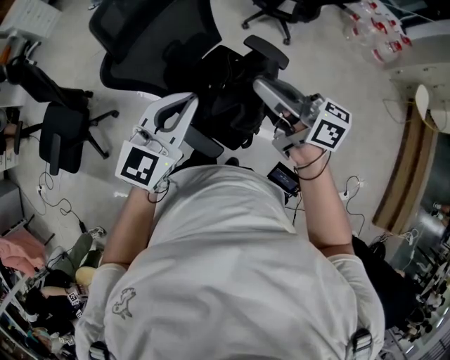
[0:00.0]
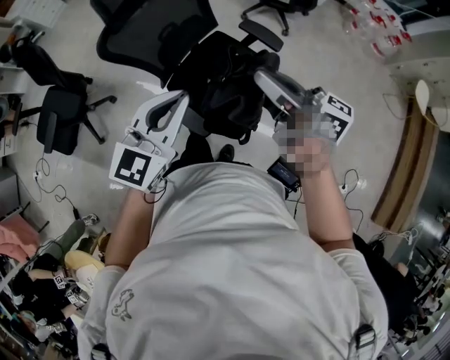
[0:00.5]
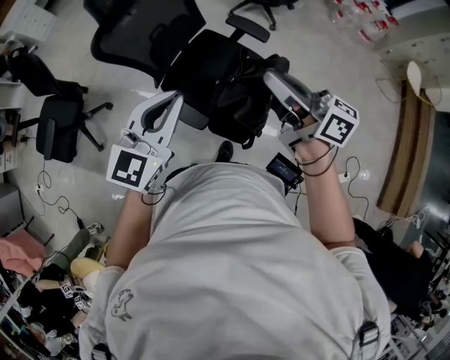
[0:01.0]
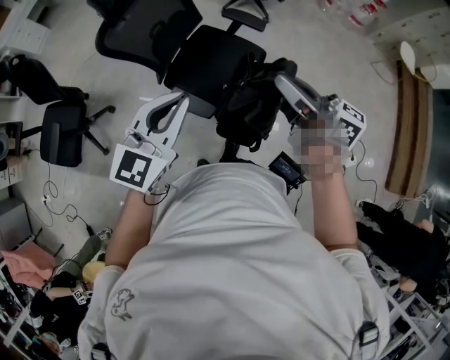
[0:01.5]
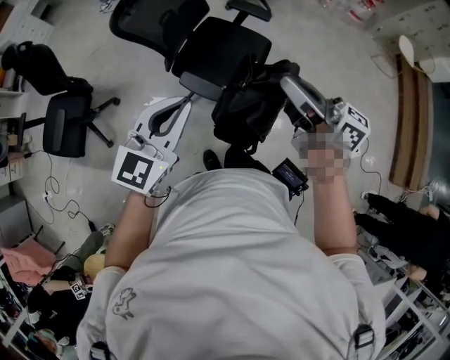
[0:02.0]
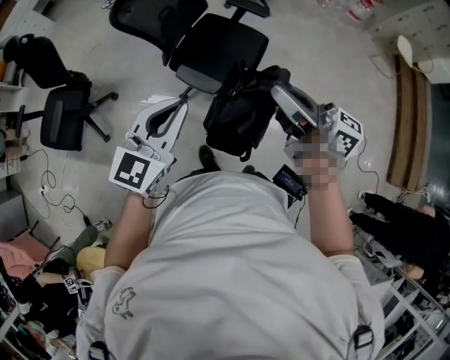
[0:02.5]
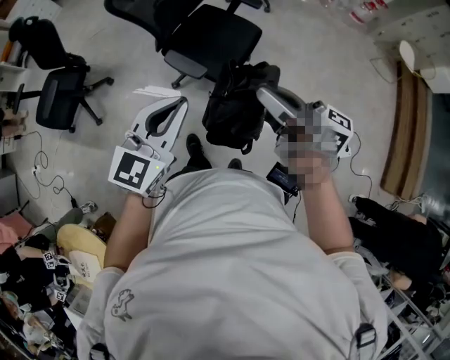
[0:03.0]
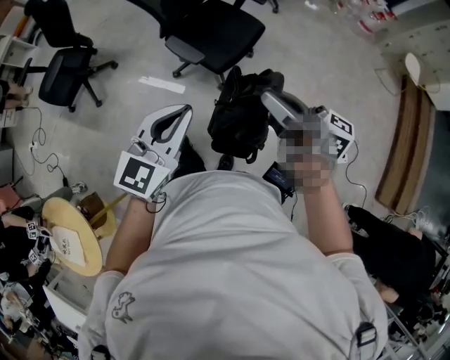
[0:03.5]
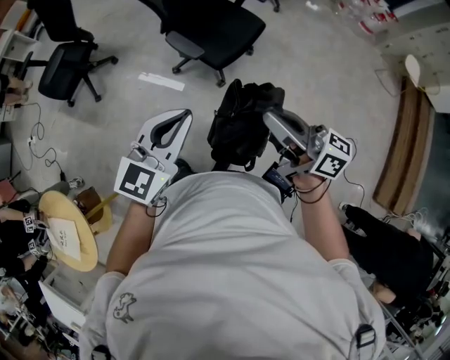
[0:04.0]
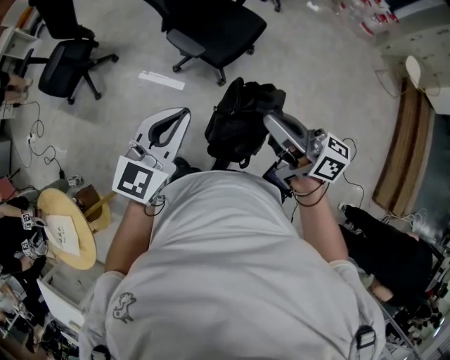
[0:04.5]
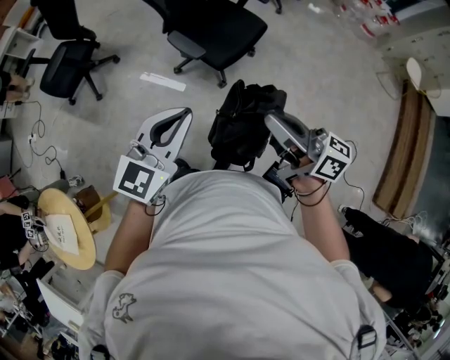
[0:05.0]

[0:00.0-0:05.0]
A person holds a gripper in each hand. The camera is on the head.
0:00.0 to 0:02.5: The grippers both shift backward by about 35 cm.
0:02.5 to 0:05.0: The left gripper shifts roughly 25 cm backward and to the right, while the right gripper travels backward by some 20 cm.

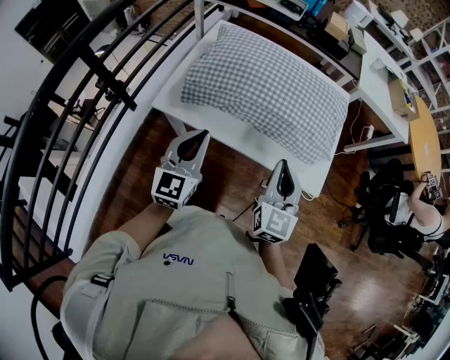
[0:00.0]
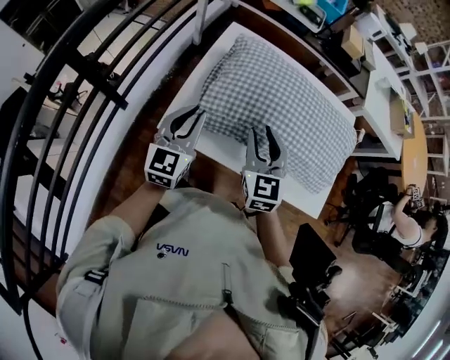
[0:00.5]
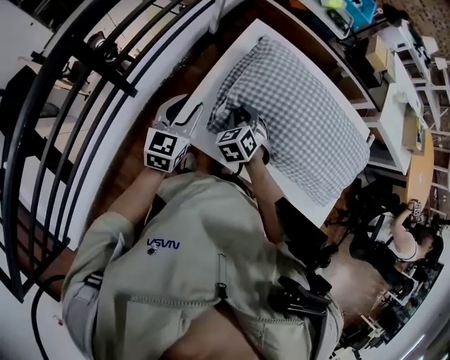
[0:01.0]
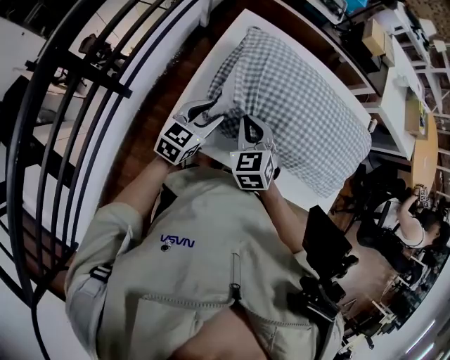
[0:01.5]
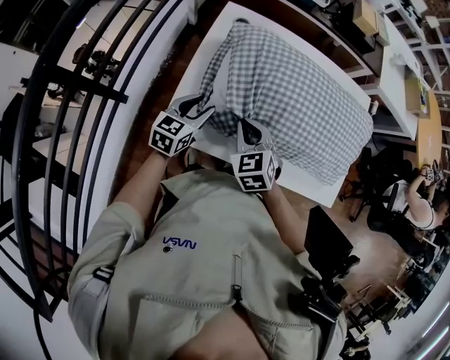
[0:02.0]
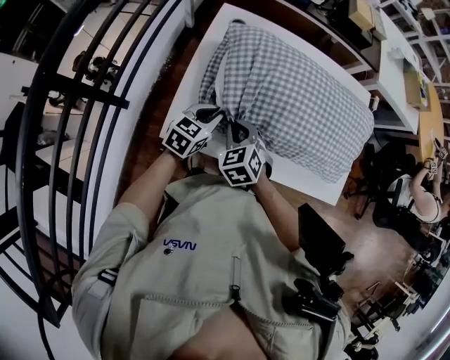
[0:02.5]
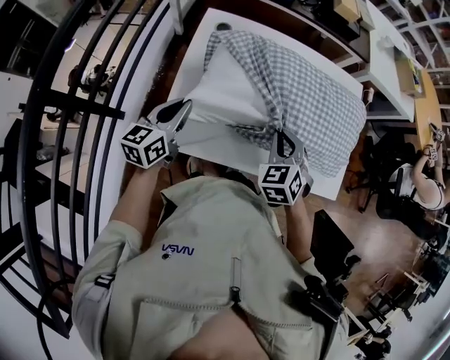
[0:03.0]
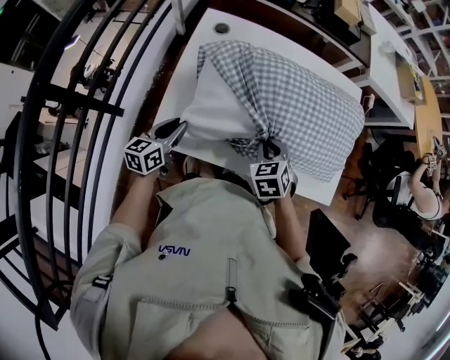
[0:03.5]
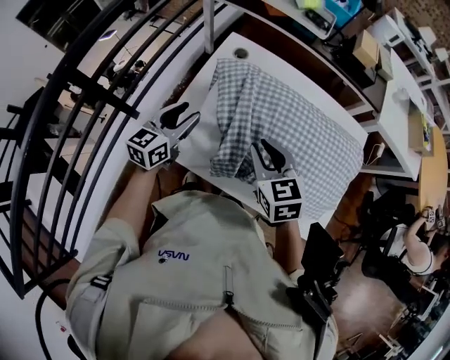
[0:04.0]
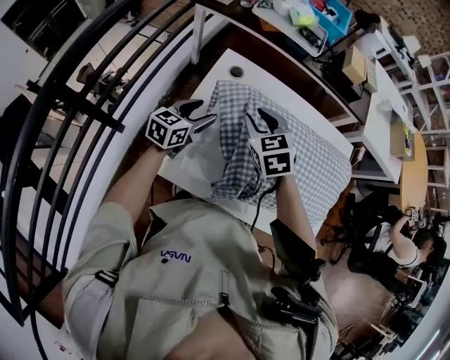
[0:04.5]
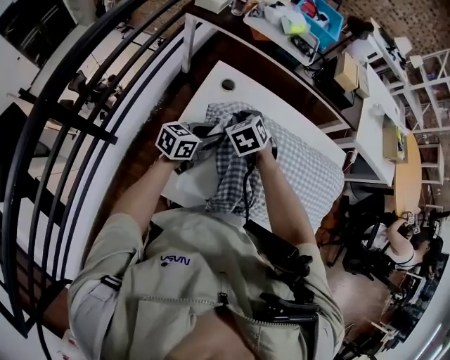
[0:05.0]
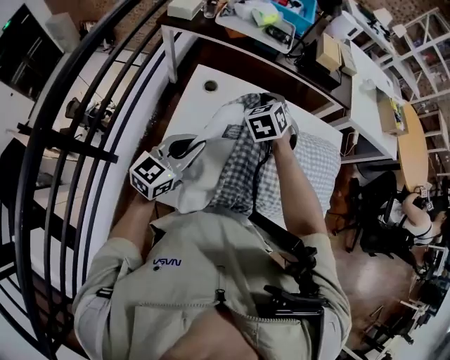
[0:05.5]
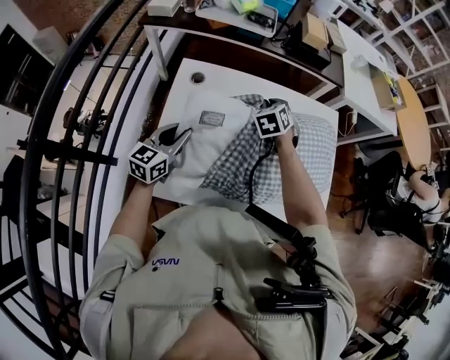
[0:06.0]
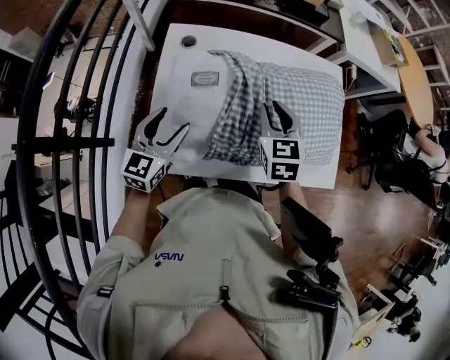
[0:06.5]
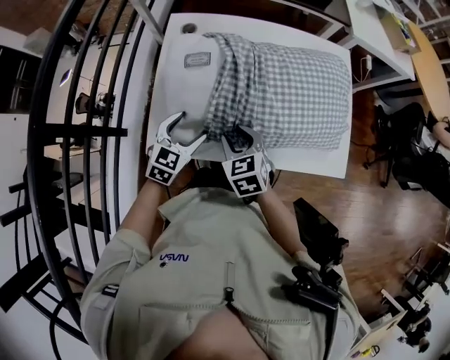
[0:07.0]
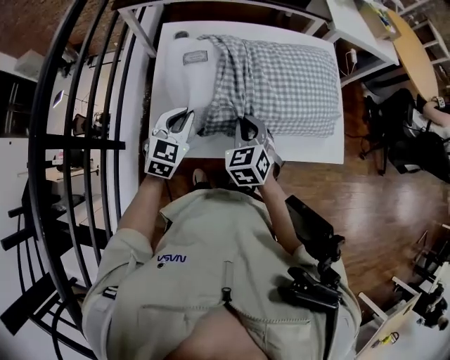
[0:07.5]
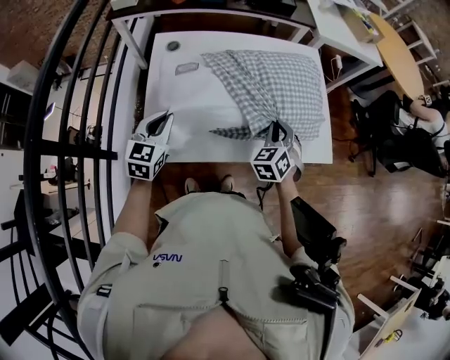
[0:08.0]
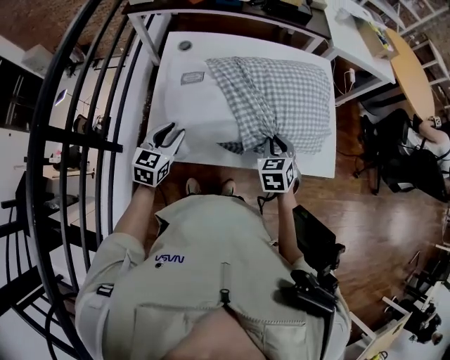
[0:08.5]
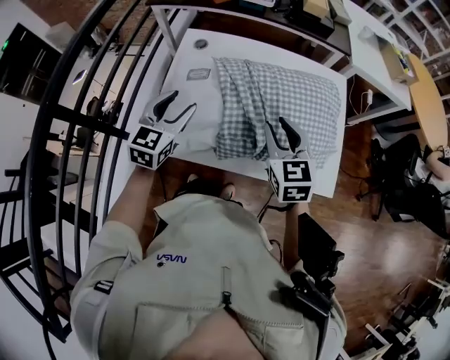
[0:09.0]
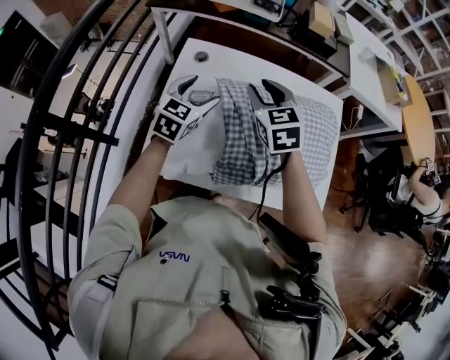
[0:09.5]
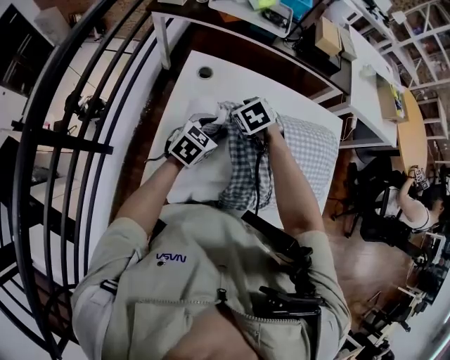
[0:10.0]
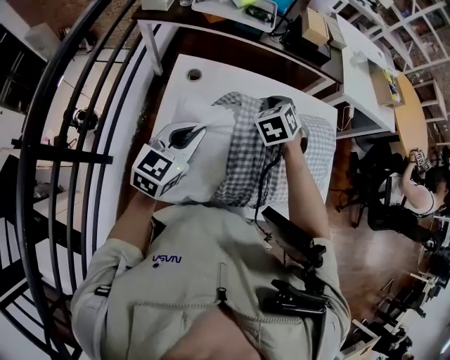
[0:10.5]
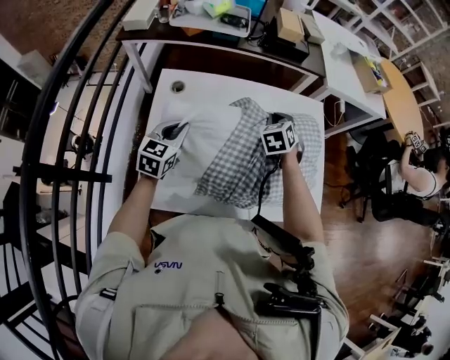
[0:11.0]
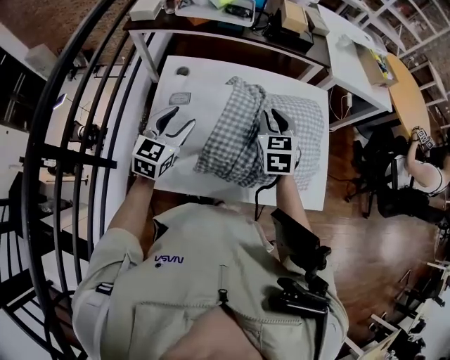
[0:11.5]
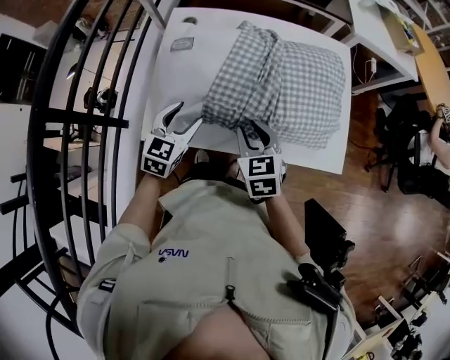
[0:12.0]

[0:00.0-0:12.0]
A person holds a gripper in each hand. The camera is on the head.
0:00.0 to 0:02.0: The right gripper moves to the left, forward and downward, some 35 cm, tilts its fingers approximately 30 degrees downward, and opens, then closes again. Meanwhile the left gripper is displaced forward, to the left and downward by roughly 30 cm, swivels roughly 30 degrees, and opens up.
0:02.0 to 0:04.0: The left gripper moves up and down over about 10 cm, changing direction 2 times, and closes and opens again; the right gripper swings up and down, some 15 cm each way, with 3 reversals, and opens.
0:04.0 to 0:06.0: The right gripper goes up and down, approximately 10 cm each way, reversing 2 times, and turns by roughly 40 degrees, while the left gripper goes up and down, approximately 10 cm each way, reversing 2 times.
0:06.0 to 0:08.0: The left gripper is displaced backward by roughly 10 cm, and opens and closes again. Meanwhile the right gripper heads backward and to the right, covering about 30 cm, and opens, then closes again.
0:08.0 to 0:10.0: The left gripper shifts some 15 cm forward and to the right, and opens up. Meanwhile the right gripper is displaced to the left and forward by roughly 30 cm, rotates roughly 40 degrees, and opens.
0:10.0 to 0:12.0: The left gripper moves forward and backward over roughly 15 cm, changing direction 2 times, and closes, then reopens, while the right gripper shifts roughly 30 cm backward and to the right, swivels about 30 degrees, and closes, then opens again.

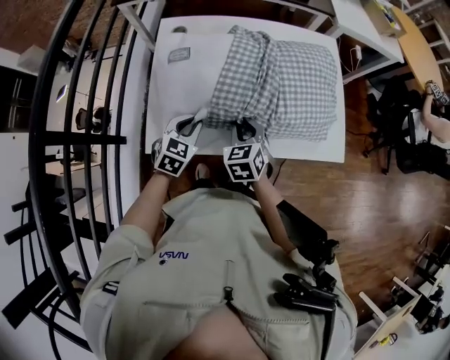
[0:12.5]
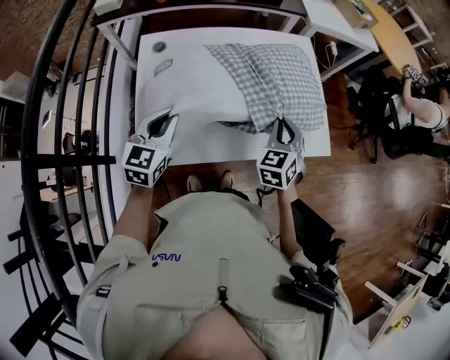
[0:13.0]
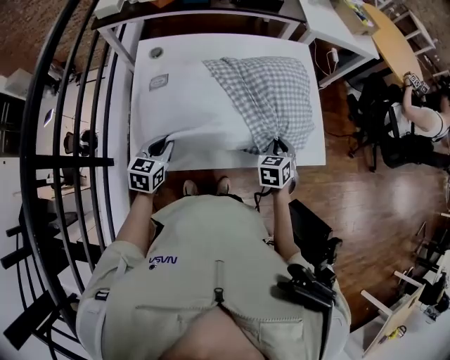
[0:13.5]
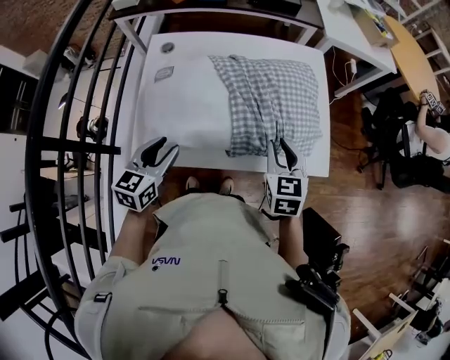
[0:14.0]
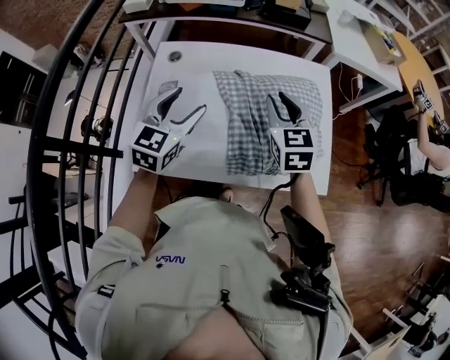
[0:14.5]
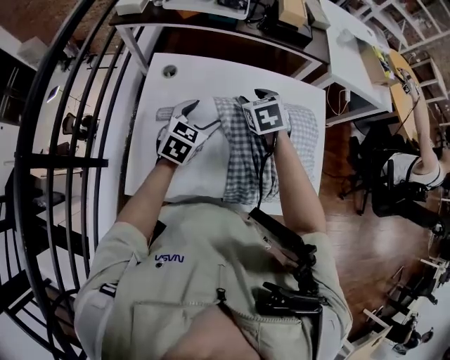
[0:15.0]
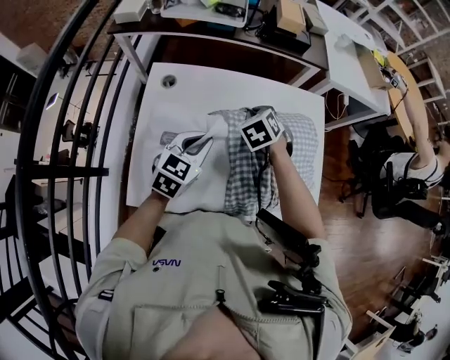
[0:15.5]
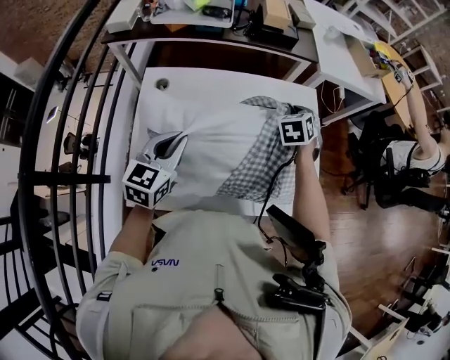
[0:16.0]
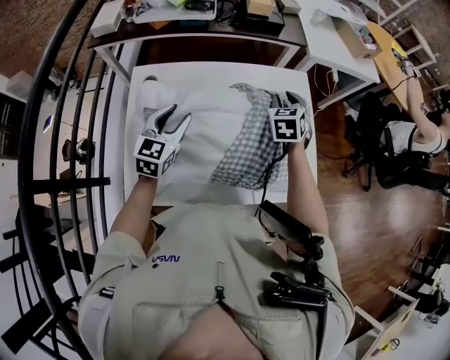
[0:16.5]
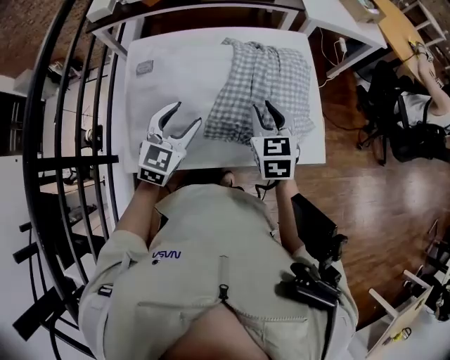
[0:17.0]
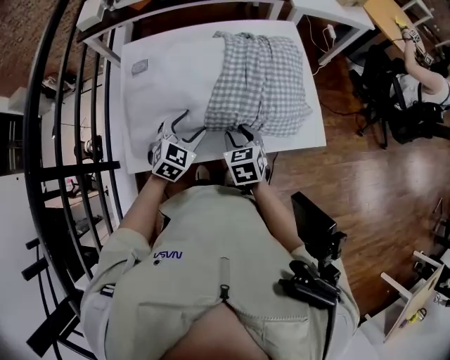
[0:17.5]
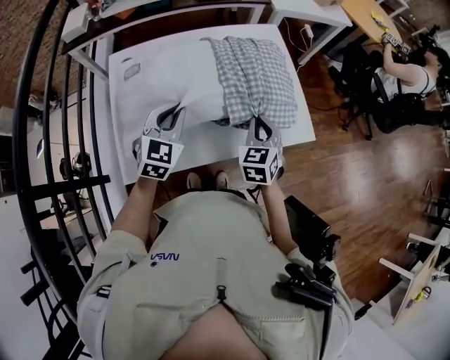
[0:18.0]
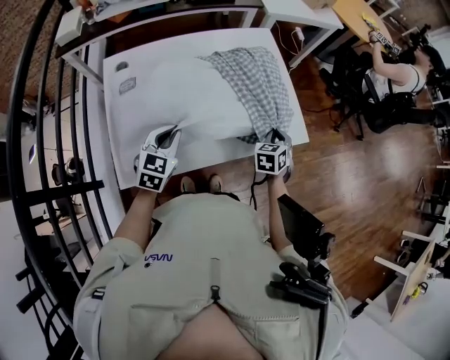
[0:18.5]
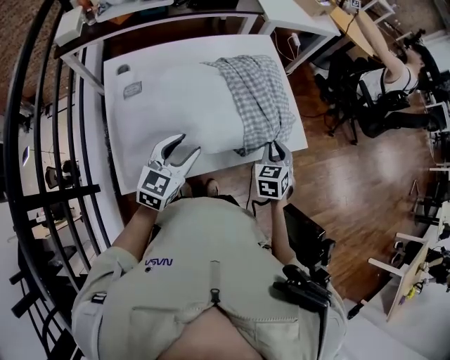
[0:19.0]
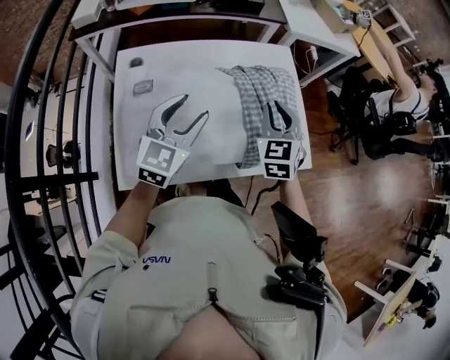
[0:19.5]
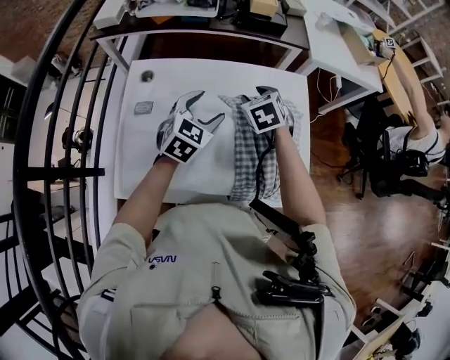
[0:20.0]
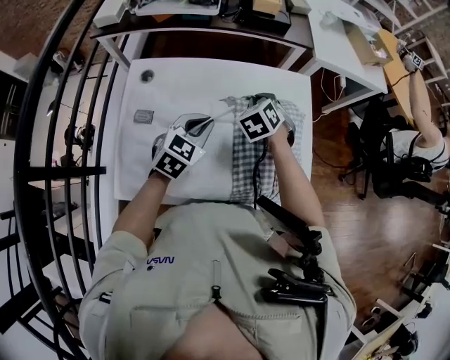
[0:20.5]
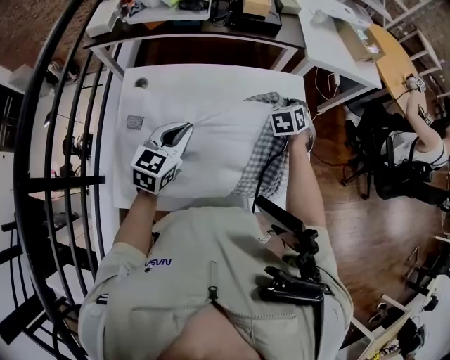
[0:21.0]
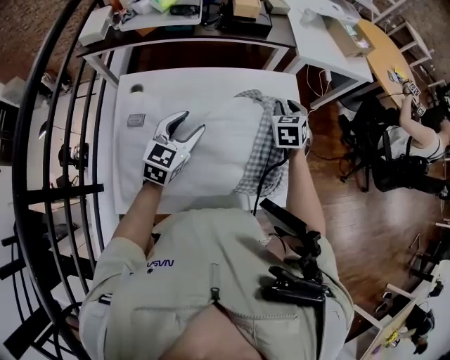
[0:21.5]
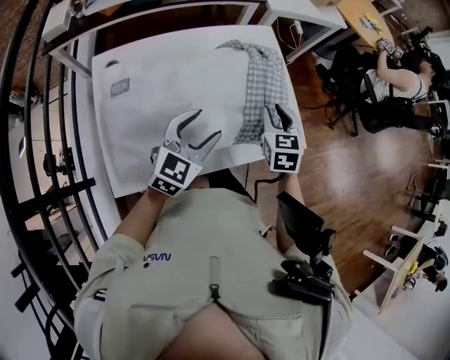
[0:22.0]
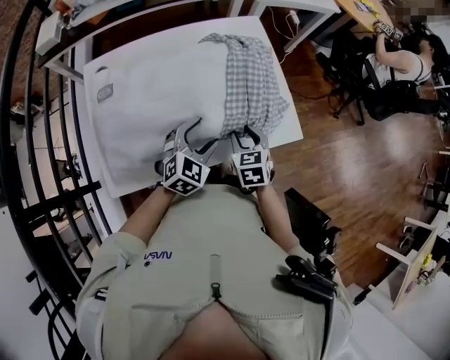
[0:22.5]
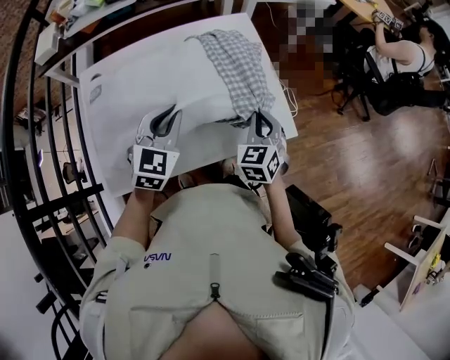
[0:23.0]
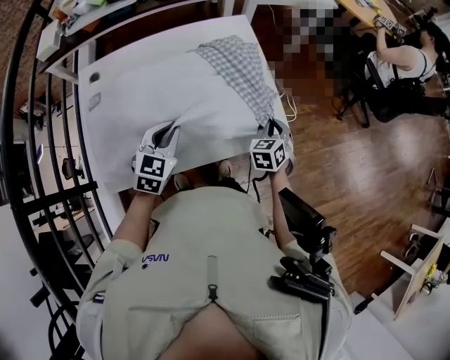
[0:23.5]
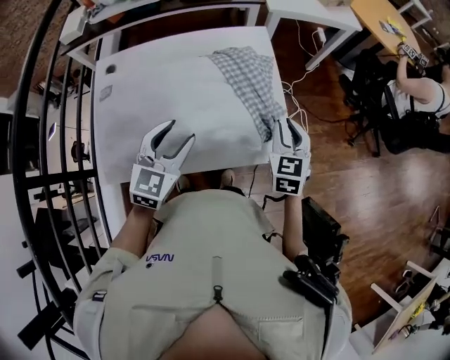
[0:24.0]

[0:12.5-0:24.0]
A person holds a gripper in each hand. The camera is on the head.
0:12.5 to 0:14.5: The right gripper heads upward, forward and to the right, covering roughly 25 cm, while the left gripper moves up and down over about 20 cm, changing direction 2 times, rotates roughly 20 degrees, and opens.
0:14.5 to 0:16.5: The left gripper goes forward and backward, about 10 cm each way, reversing 2 times, and closes, then reopens. Meanwhile the right gripper travels forward, to the right and downward by approximately 15 cm, and changes its angle by about 30 degrees.
0:16.5 to 0:18.5: The left gripper goes up and down, approximately 10 cm each way, reversing 2 times, and closes its fingers. The right gripper goes up and down, roughly 15 cm each way, reversing 2 times, changes its angle by approximately 30 degrees, and closes.
0:18.5 to 0:20.0: The right gripper moves roughly 35 cm, turns by roughly 40 degrees, and opens. The left gripper shifts by about 20 cm, and opens.
0:20.0 to 0:22.0: The left gripper changes place by roughly 15 cm, changes its angle by some 20 degrees, and closes, then opens again; the right gripper moves about 20 cm, swivels about 30 degrees, and closes, then opens again.
0:22.0 to 0:24.0: The left gripper moves up and down over about 10 cm, changing direction 3 times, and closes, then opens again. The right gripper shifts approximately 15 cm to the right.
